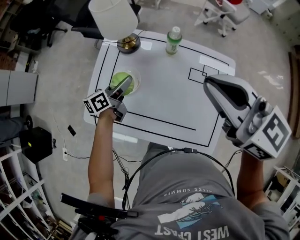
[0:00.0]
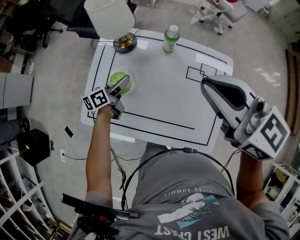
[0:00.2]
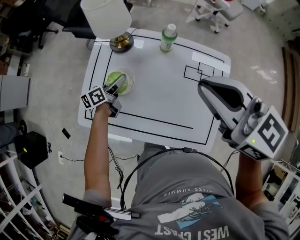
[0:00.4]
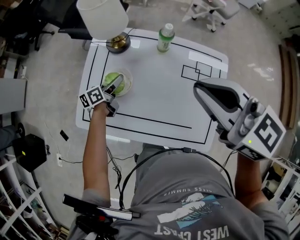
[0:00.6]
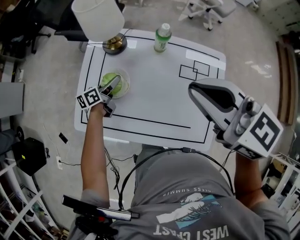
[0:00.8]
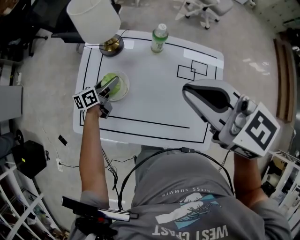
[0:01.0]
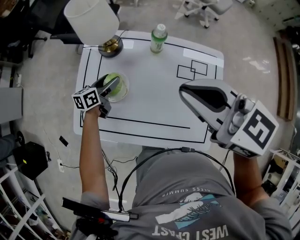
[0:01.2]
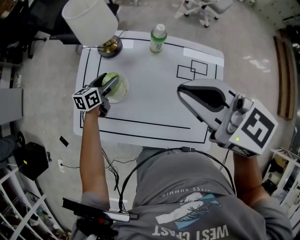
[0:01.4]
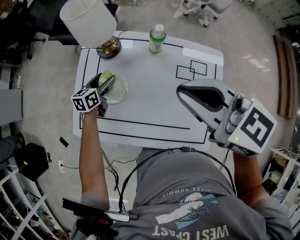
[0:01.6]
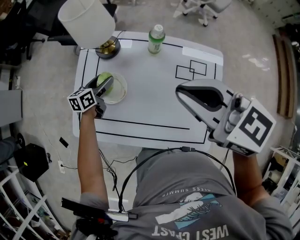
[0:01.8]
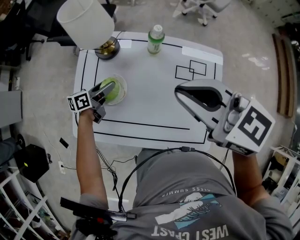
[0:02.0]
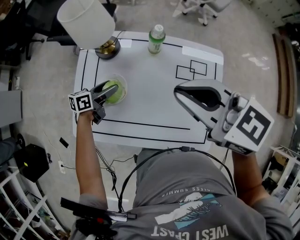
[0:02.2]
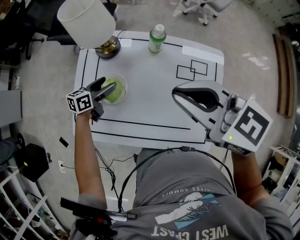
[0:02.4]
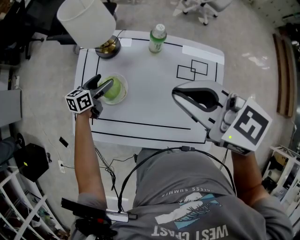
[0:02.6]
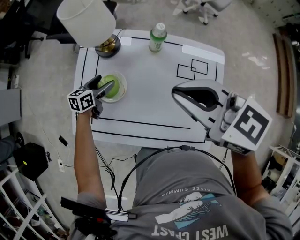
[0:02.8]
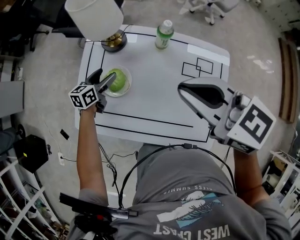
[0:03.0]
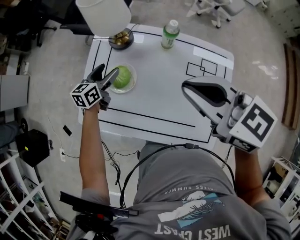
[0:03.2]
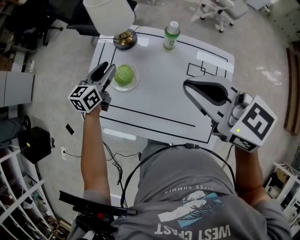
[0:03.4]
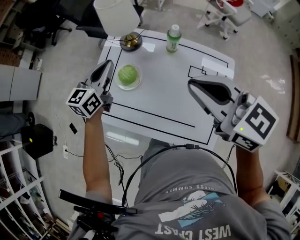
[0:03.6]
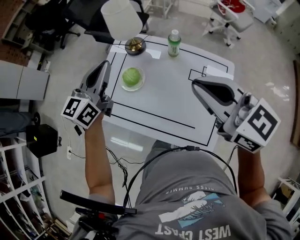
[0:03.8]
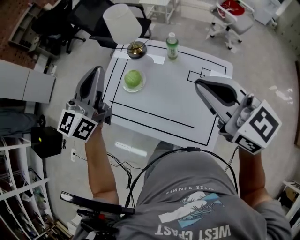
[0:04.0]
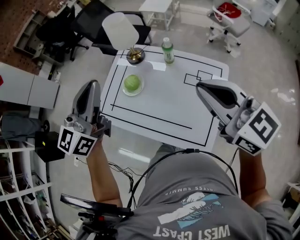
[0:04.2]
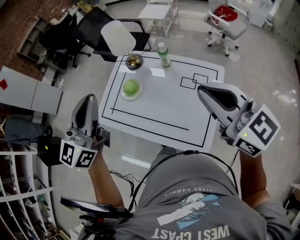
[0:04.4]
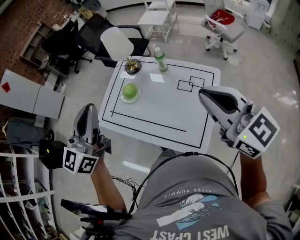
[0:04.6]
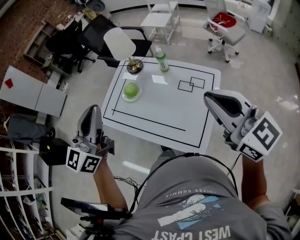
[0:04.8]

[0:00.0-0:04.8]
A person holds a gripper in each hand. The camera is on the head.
0:00.0 to 0:01.6: The left gripper travels downward and forward by roughly 10 cm, and turns by about 30 degrees, while the right gripper goes approximately 5 cm downward.
0:01.6 to 0:03.2: The left gripper shifts approximately 5 cm upward.
0:03.2 to 0:04.8: The right gripper shifts some 30 cm backward, to the right and upward, and rotates approximately 20 degrees; the left gripper heads upward and backward, covering roughly 50 cm, tilts its fingers about 30 degrees upward, and closes its fingers.

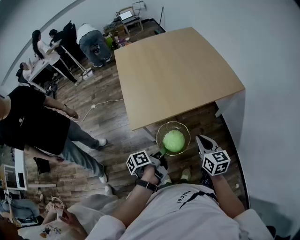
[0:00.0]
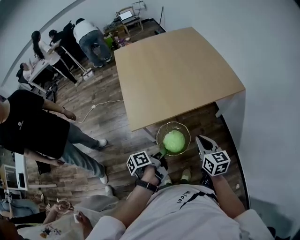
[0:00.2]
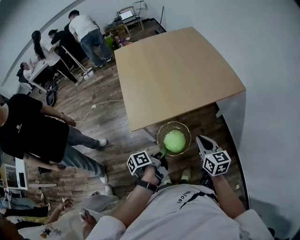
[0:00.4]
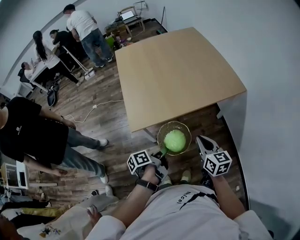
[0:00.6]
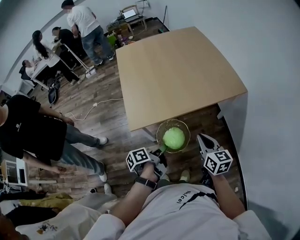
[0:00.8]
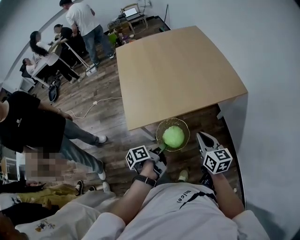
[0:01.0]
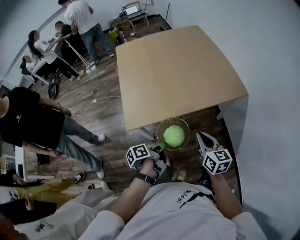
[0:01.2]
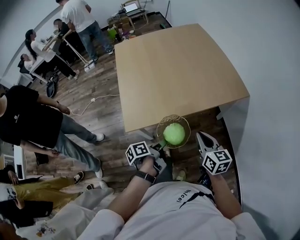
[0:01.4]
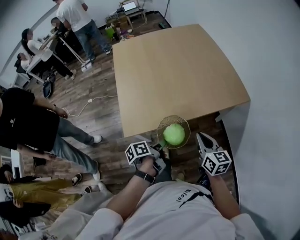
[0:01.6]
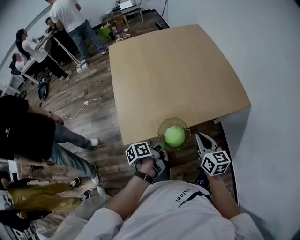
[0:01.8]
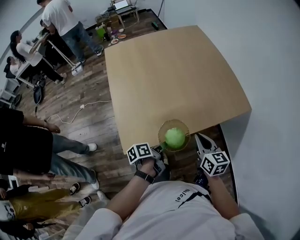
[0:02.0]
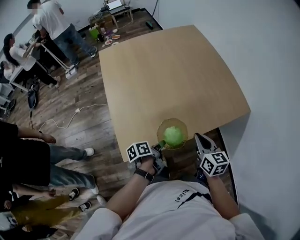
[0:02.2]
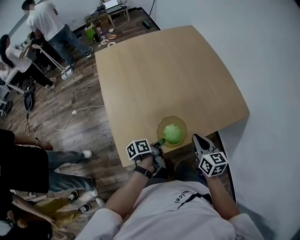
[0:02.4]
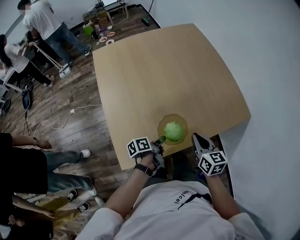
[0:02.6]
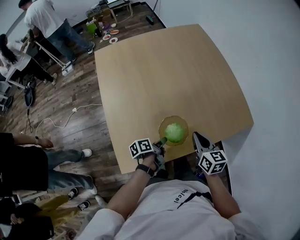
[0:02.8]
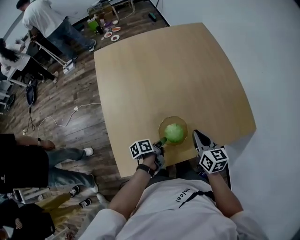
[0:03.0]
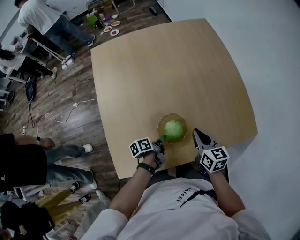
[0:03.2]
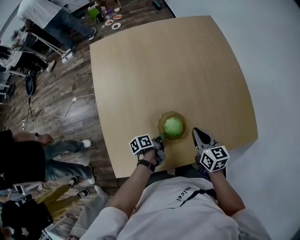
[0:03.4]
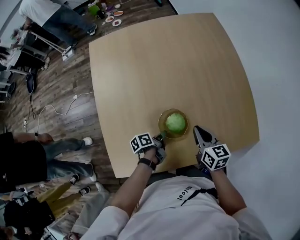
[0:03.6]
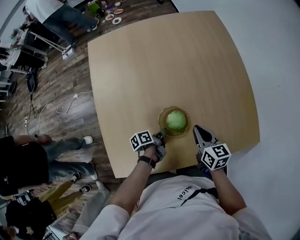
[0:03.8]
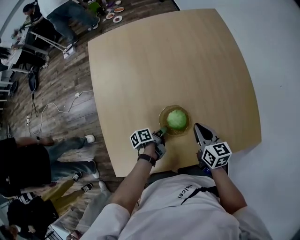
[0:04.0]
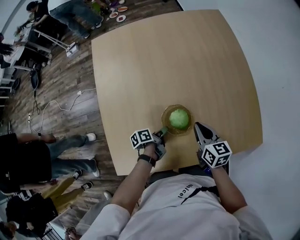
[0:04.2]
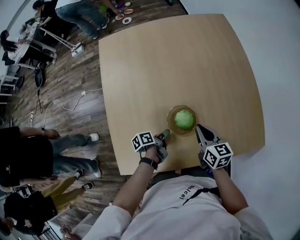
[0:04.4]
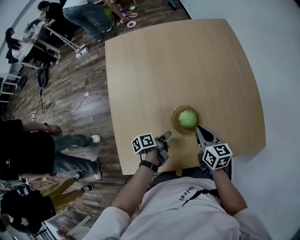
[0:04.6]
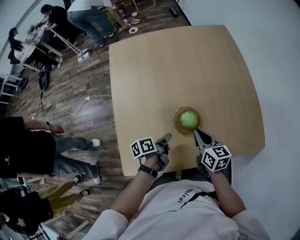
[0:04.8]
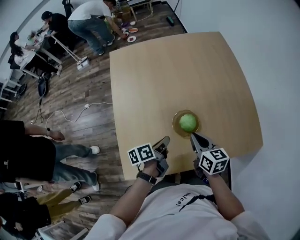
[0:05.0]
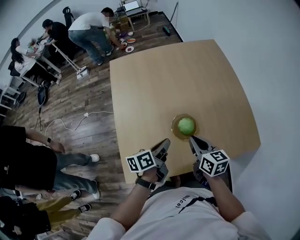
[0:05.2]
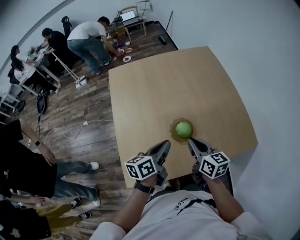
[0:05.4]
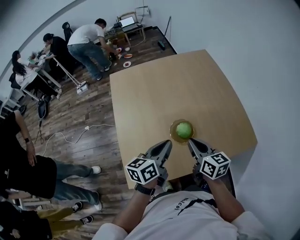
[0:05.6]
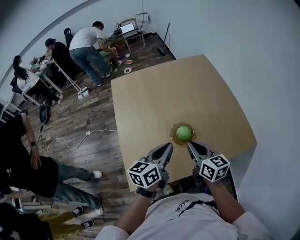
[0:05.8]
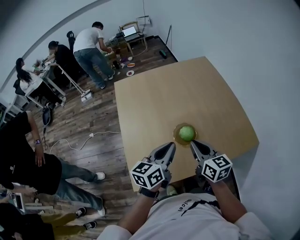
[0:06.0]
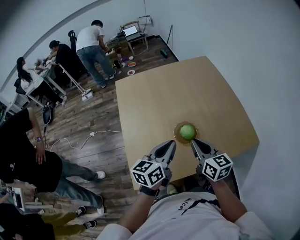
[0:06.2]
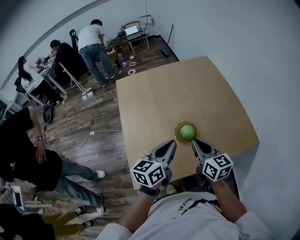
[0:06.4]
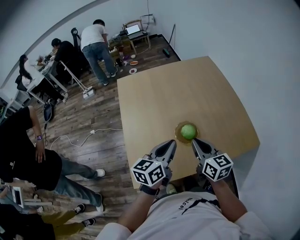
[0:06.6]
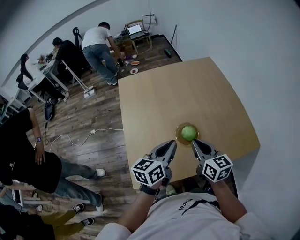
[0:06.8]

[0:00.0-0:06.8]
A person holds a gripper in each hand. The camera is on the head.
0:00.0 to 0:01.4: The right gripper ends up about 10 cm from where it was.
0:01.4 to 0:02.8: The right gripper changes place by some 30 cm.
0:02.8 to 0:04.0: The right gripper ends up approximately 15 cm from where it was.
0:04.0 to 0:05.4: The right gripper changes place by roughly 20 cm.
0:05.4 to 0:06.8: The right gripper moves upward, roughly 5 cm.

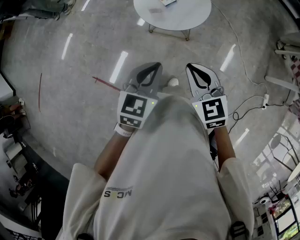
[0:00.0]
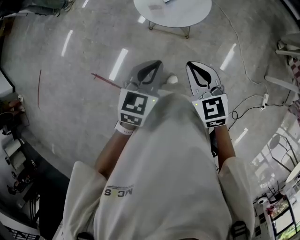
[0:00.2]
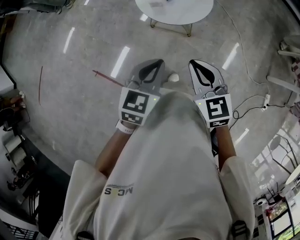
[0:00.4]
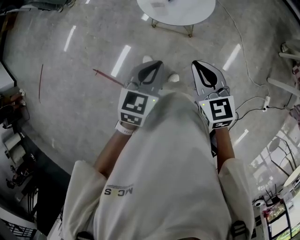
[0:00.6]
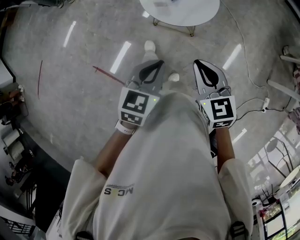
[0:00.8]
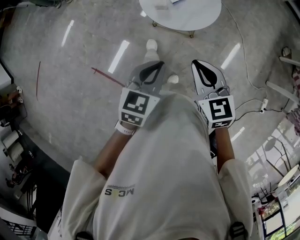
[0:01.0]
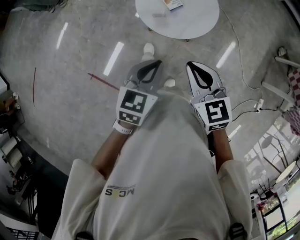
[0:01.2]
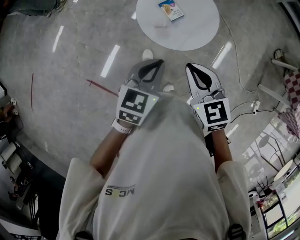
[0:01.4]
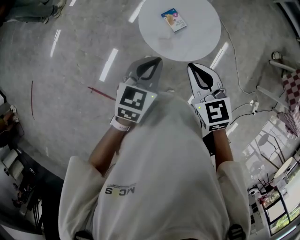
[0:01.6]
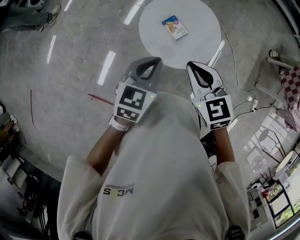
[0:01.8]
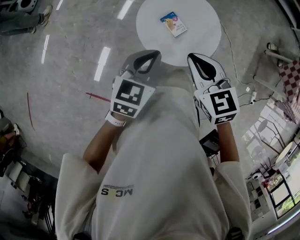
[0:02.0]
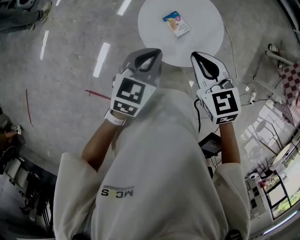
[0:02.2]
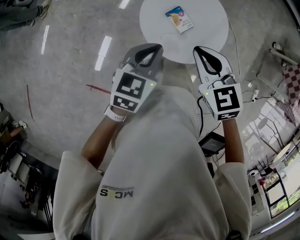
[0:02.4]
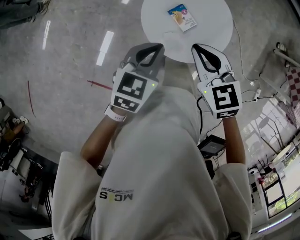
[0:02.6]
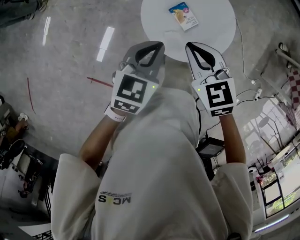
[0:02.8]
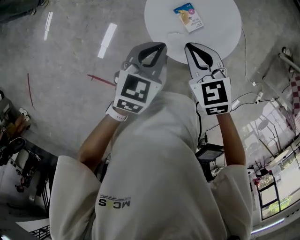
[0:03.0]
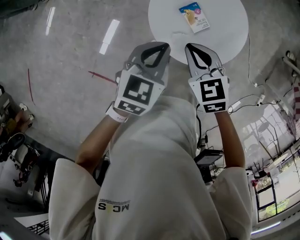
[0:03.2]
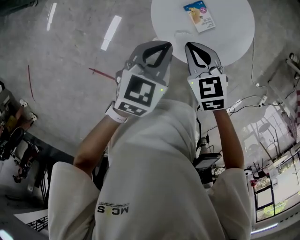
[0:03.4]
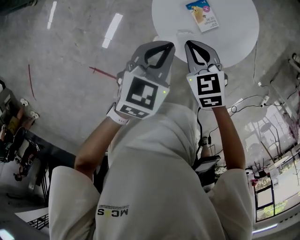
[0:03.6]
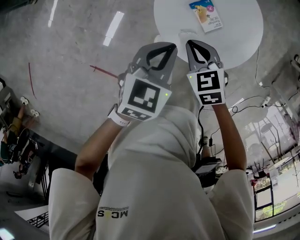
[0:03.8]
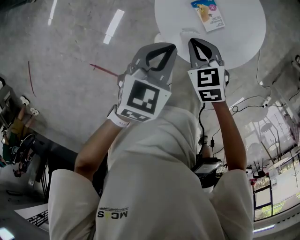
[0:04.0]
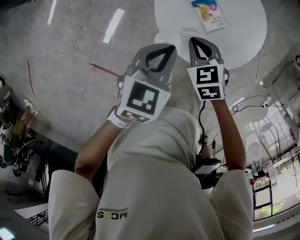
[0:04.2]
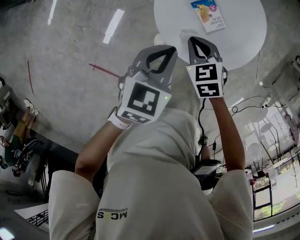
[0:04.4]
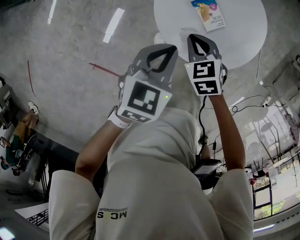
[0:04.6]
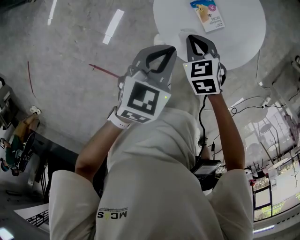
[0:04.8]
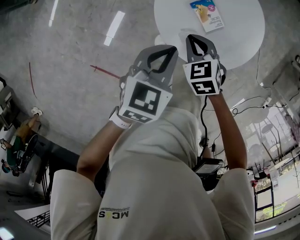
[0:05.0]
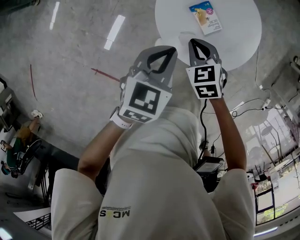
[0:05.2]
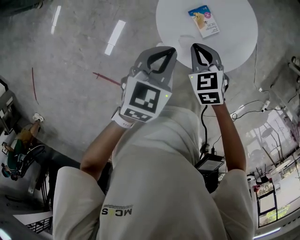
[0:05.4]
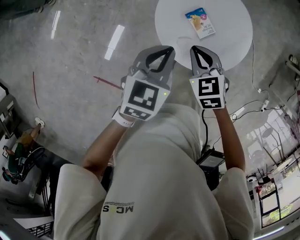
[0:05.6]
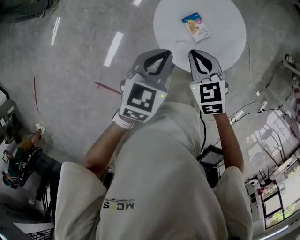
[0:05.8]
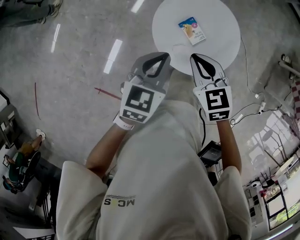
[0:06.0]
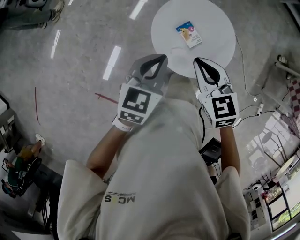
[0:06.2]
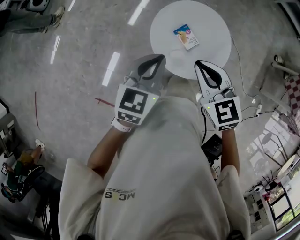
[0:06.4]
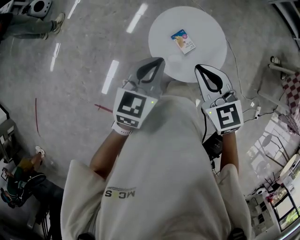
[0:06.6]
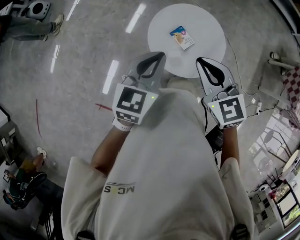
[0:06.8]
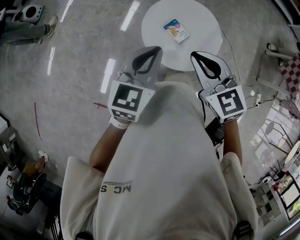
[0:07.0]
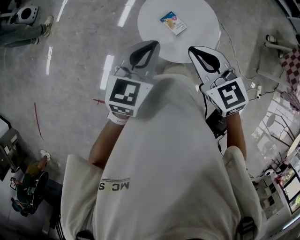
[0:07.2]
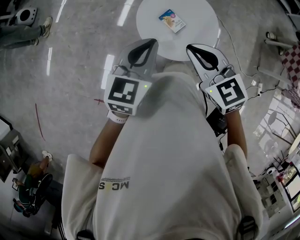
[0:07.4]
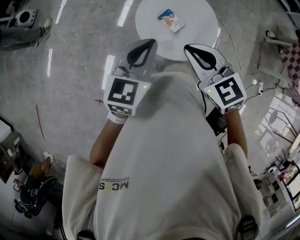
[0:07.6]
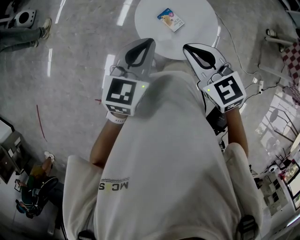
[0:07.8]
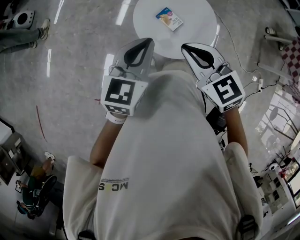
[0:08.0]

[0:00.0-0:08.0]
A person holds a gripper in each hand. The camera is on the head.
0:00.0 to 0:01.6: The grippers both shift forward by some 30 cm.
0:01.6 to 0:03.2: The left gripper travels forward and downward by about 20 cm. Meanwhile the right gripper heads downward, forward and to the left, covering approximately 25 cm.
0:03.2 to 0:04.8: The left gripper is displaced downward by some 5 cm. Meanwhile the right gripper shifts some 15 cm downward.
0:04.8 to 0:06.4: The right gripper heads upward, covering some 30 cm, and turns by approximately 20 degrees. Meanwhile the left gripper goes about 20 cm upward.
0:06.4 to 0:08.0: The left gripper changes place by approximately 5 cm; the right gripper is displaced backward by roughly 5 cm.

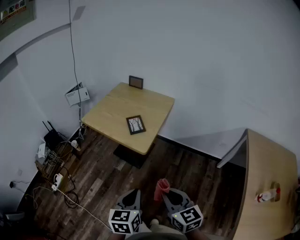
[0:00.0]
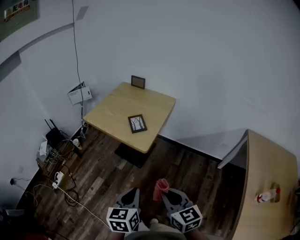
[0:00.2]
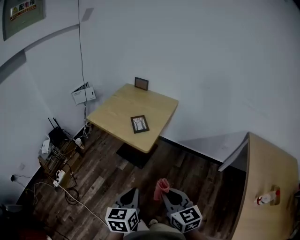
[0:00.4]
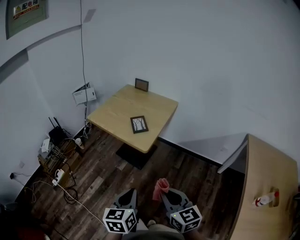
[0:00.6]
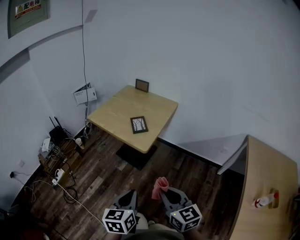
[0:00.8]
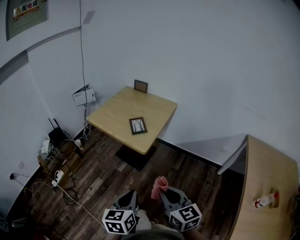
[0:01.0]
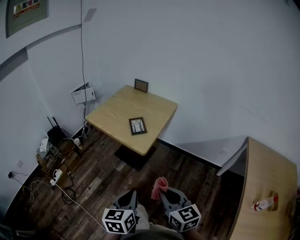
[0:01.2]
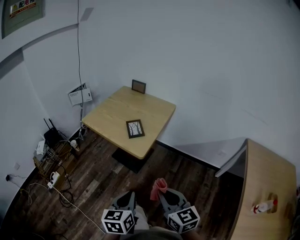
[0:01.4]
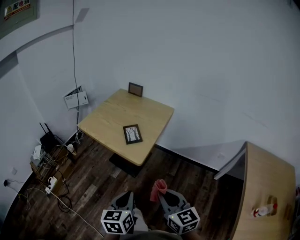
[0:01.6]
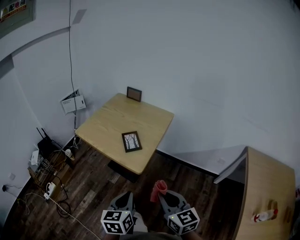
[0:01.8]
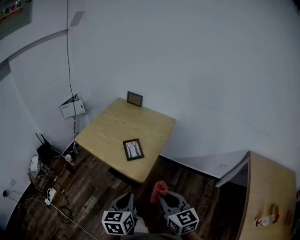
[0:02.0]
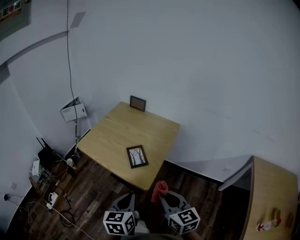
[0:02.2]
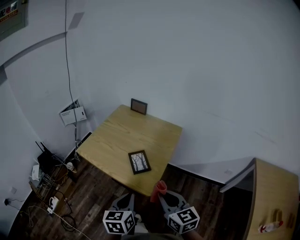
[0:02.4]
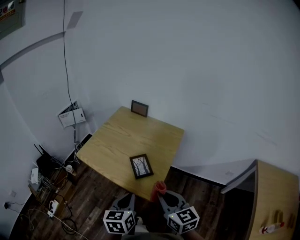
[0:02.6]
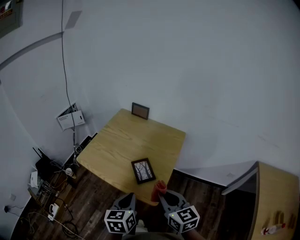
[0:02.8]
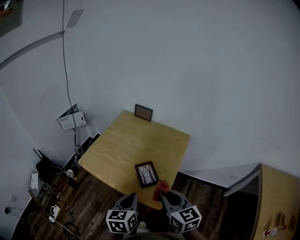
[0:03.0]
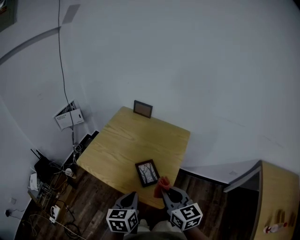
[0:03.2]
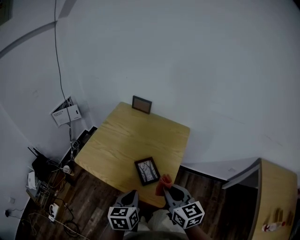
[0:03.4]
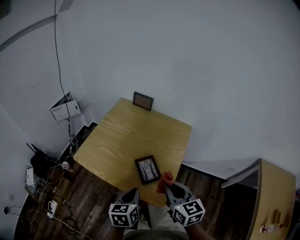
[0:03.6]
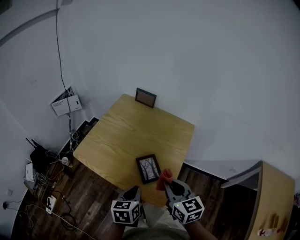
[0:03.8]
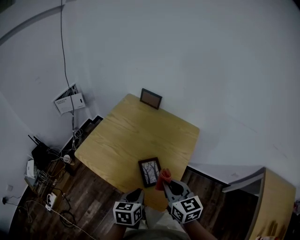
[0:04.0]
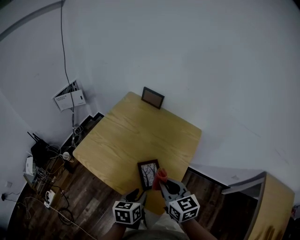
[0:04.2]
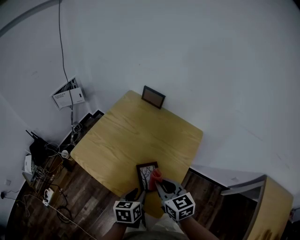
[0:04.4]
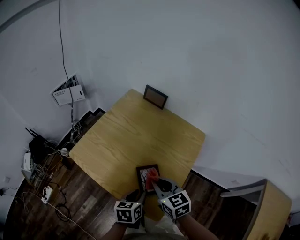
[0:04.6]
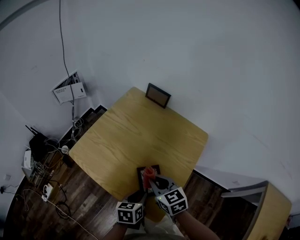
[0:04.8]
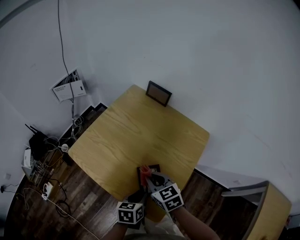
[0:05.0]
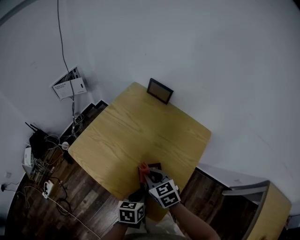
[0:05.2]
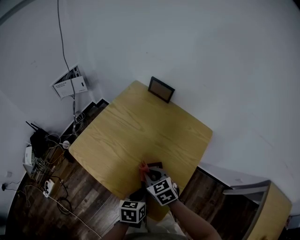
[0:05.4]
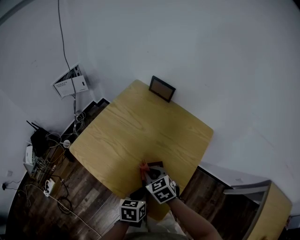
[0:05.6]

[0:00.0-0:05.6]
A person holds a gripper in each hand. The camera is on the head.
0:00.0 to 0:01.4: There are only small adjustments of the grippers.
0:01.4 to 0:02.8: Both grippers move forward, roughly 30 cm.
0:02.8 to 0:04.2: The left gripper shifts roughly 15 cm downward and forward, and opens its fingers. The right gripper heads forward and downward, covering some 15 cm.
0:04.2 to 0:05.6: The left gripper moves downward, approximately 5 cm. Meanwhile the right gripper shifts approximately 15 cm downward, forward and to the left, and rotates roughly 30 degrees.
